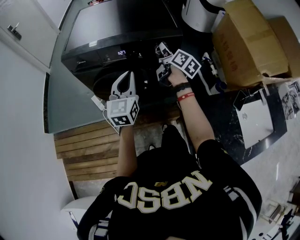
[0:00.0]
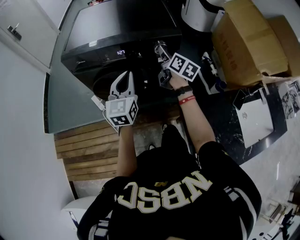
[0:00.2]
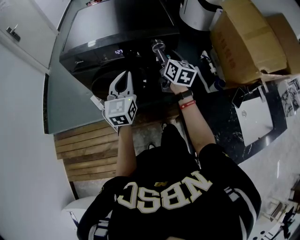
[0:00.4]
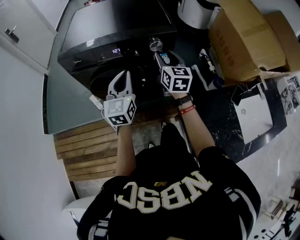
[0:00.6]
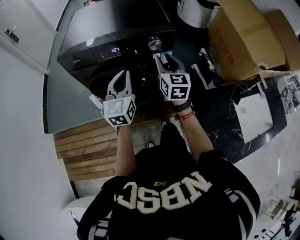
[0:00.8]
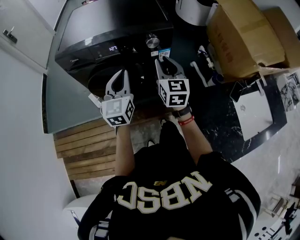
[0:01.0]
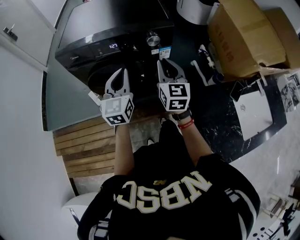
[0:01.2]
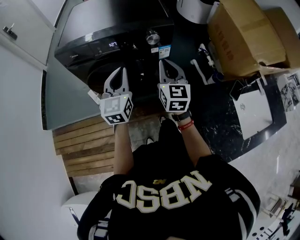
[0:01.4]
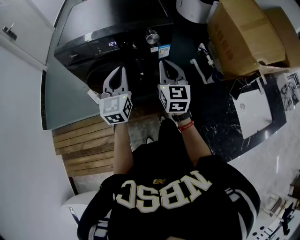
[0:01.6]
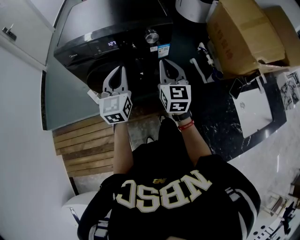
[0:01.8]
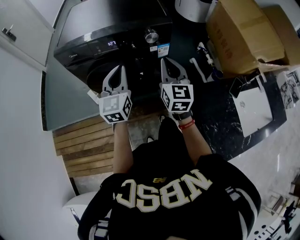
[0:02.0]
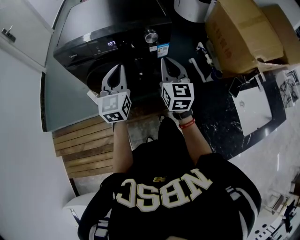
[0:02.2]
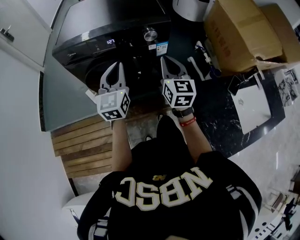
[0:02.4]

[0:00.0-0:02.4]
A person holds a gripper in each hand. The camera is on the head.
0:00.0 to 0:01.2: The right gripper heads backward, covering about 15 cm, rolls counterclockwise, seen from behind, by some 50 degrees, and closes.
0:01.2 to 0:02.4: The grippers stay close to where they were, moving slightly.

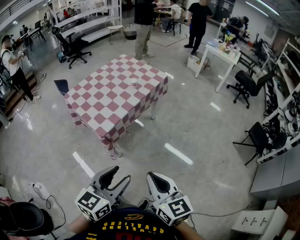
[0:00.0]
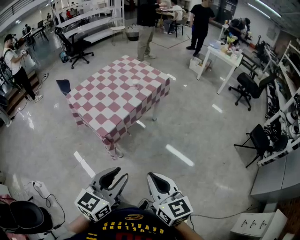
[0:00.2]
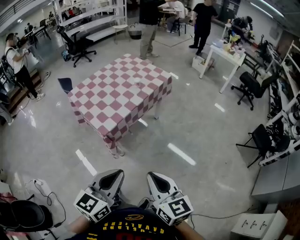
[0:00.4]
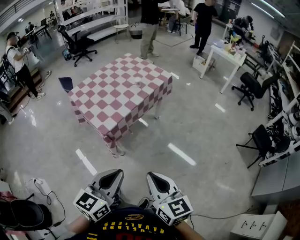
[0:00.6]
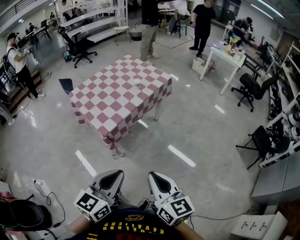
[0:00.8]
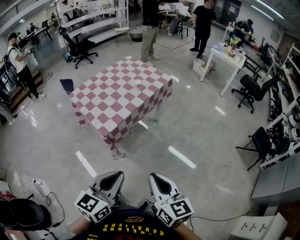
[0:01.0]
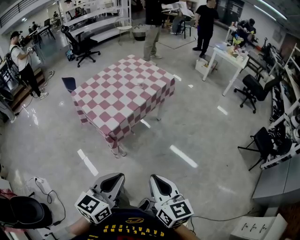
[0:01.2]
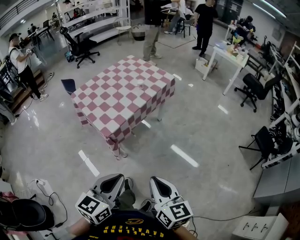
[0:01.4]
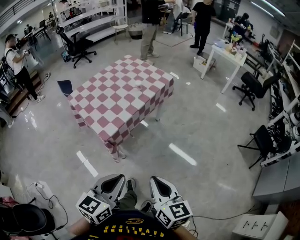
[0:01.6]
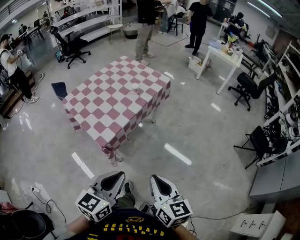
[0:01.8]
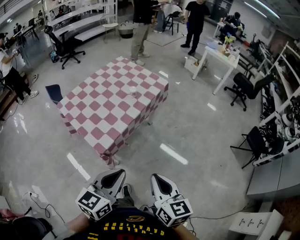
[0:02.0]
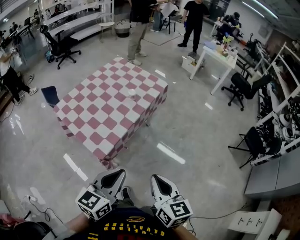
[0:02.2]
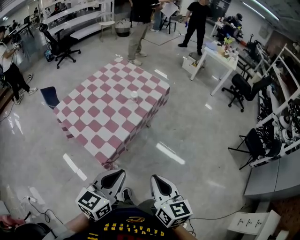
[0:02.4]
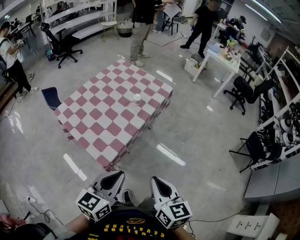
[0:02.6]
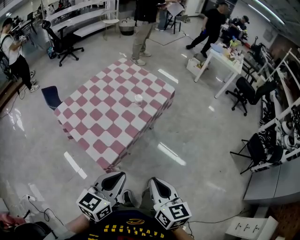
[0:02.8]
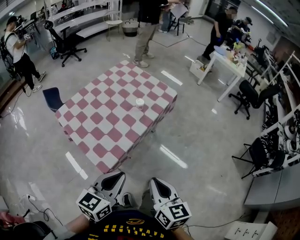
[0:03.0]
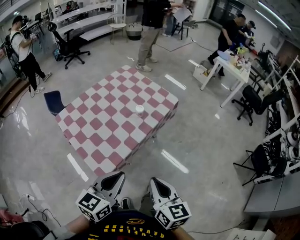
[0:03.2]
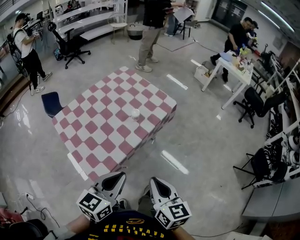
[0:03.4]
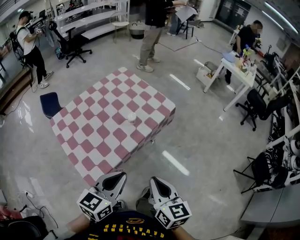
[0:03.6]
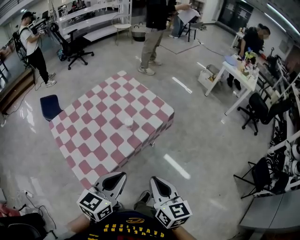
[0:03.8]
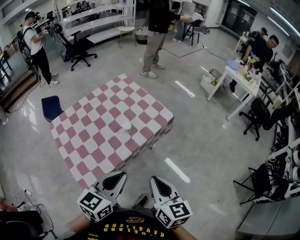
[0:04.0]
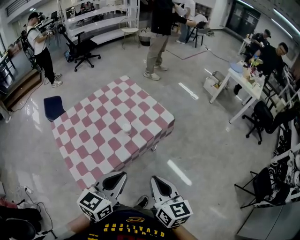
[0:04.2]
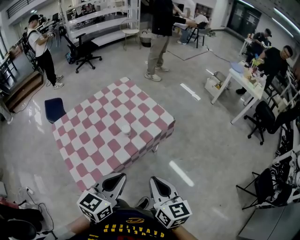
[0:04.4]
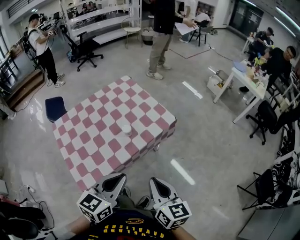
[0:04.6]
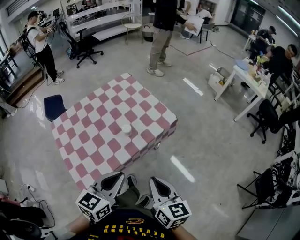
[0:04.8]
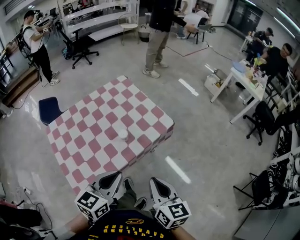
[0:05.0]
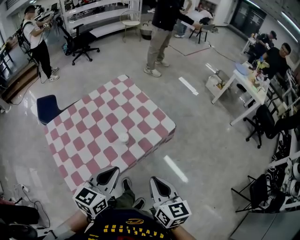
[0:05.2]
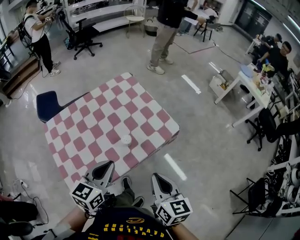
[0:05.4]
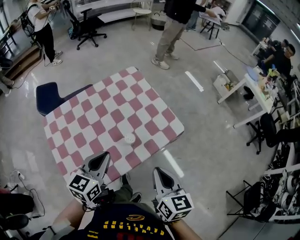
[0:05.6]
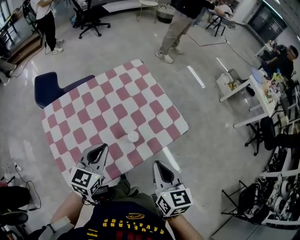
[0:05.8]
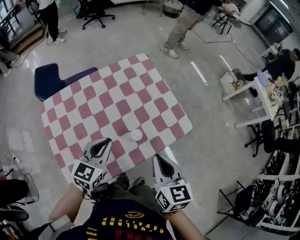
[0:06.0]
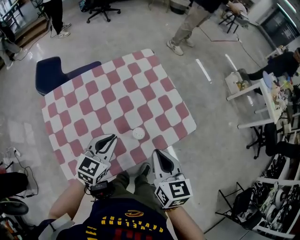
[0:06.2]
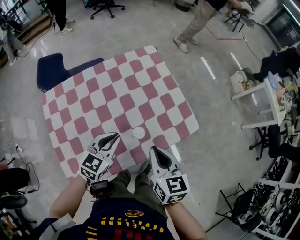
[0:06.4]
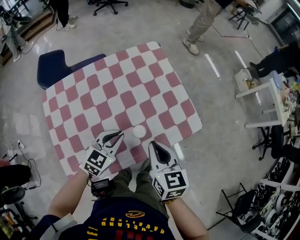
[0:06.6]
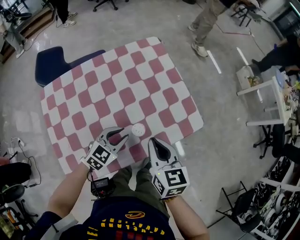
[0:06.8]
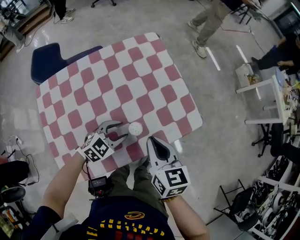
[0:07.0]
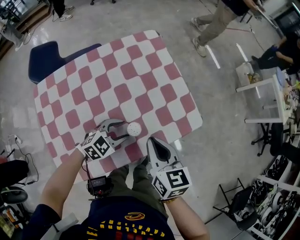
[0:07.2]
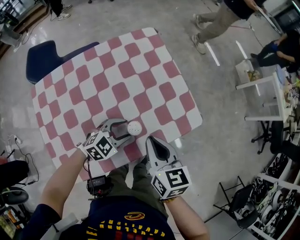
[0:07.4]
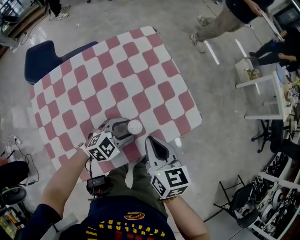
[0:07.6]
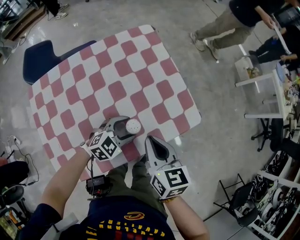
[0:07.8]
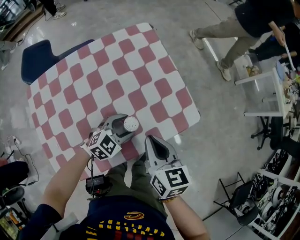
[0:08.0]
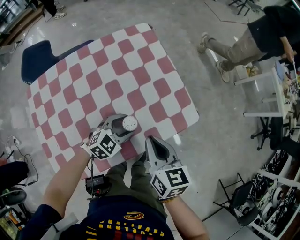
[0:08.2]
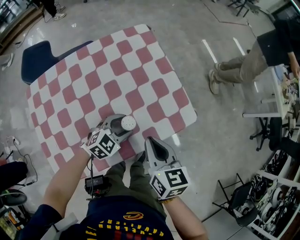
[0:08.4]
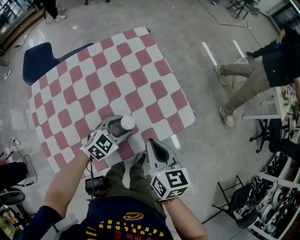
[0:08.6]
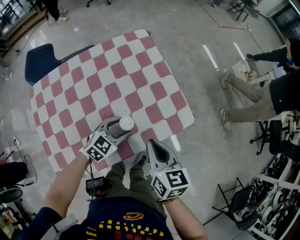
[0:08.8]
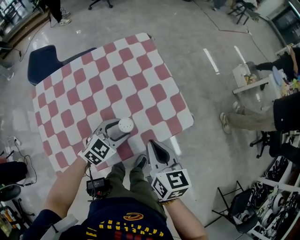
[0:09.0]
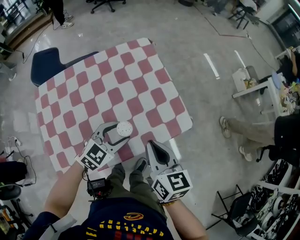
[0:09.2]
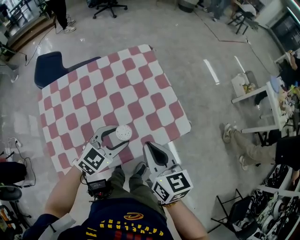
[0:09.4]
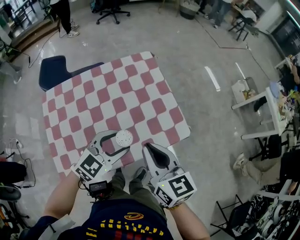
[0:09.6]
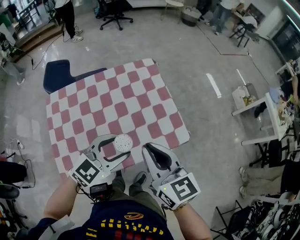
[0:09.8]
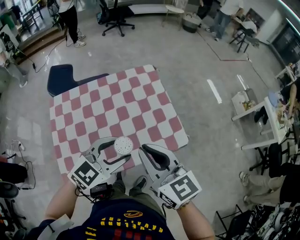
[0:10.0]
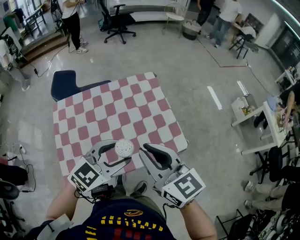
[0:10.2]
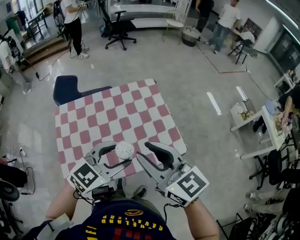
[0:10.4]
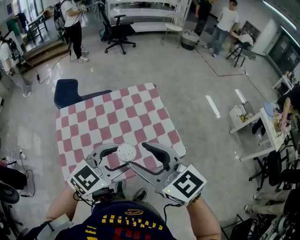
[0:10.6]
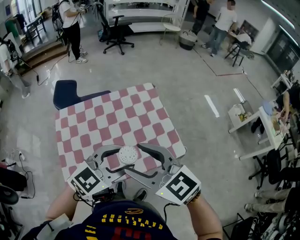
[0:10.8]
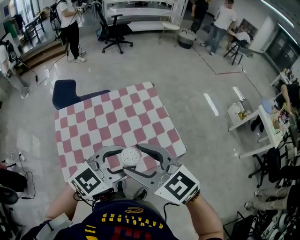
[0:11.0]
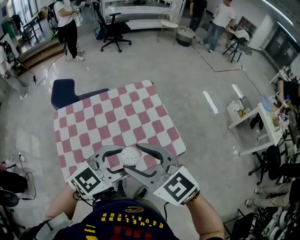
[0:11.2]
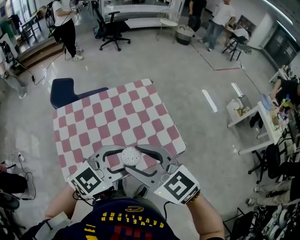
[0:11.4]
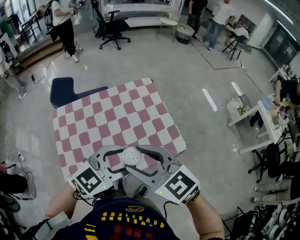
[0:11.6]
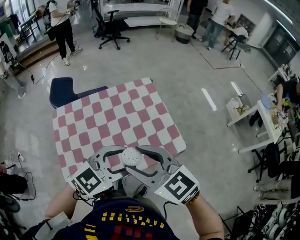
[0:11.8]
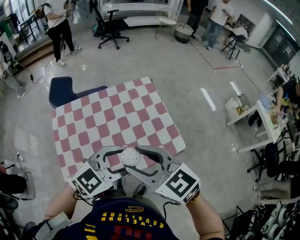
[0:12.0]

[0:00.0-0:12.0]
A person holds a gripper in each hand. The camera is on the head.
0:00.0 to 0:01.6: The left gripper closes.
0:01.6 to 0:03.0: Both grippers travel together forward and to the left, roughly 25 cm.
0:03.0 to 0:04.4: The two grippers go approximately 20 cm forward and to the right.
0:04.4 to 0:06.0: The left gripper shifts about 30 cm forward, to the left and downward. Meanwhile the right gripper is displaced forward by about 25 cm.
0:06.0 to 0:07.6: The left gripper heads downward and to the right, covering roughly 20 cm, rotates about 40 degrees, and opens up, while the right gripper shifts roughly 10 cm downward and forward.
0:07.6 to 0:09.0: The grippers make only small movements.
0:09.0 to 0:10.4: The grippers both shift upward by approximately 25 cm. The right gripper changes its angle by roughly 40 degrees, and opens its fingers.
0:10.4 to 0:12.0: The right gripper moves some 5 cm, and opens its fingers.

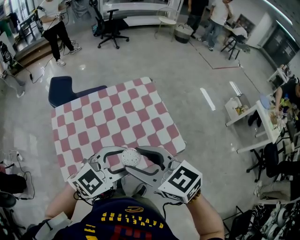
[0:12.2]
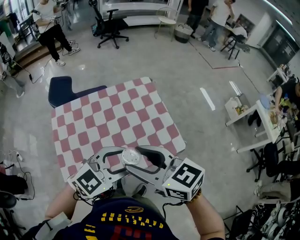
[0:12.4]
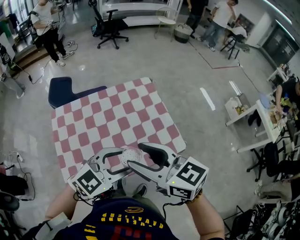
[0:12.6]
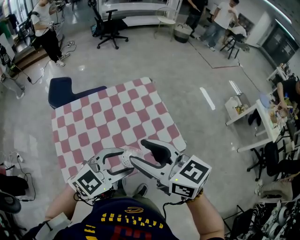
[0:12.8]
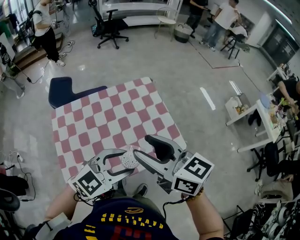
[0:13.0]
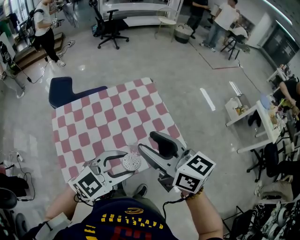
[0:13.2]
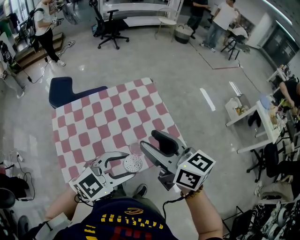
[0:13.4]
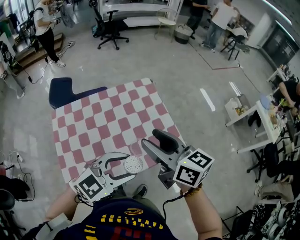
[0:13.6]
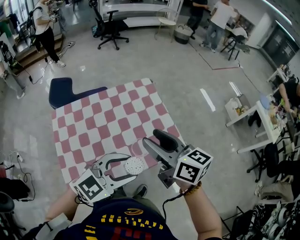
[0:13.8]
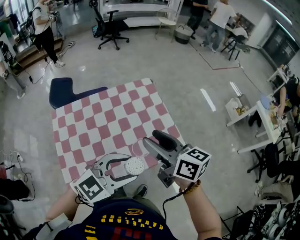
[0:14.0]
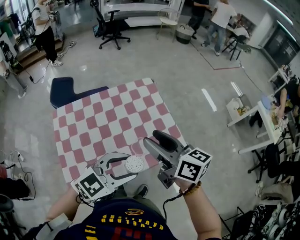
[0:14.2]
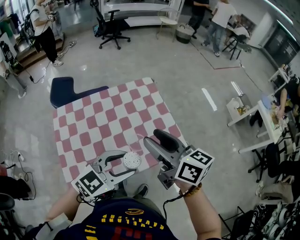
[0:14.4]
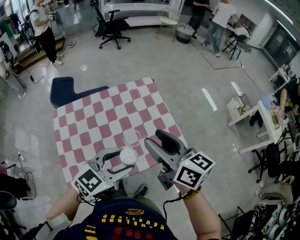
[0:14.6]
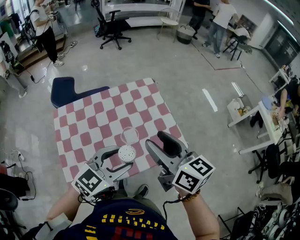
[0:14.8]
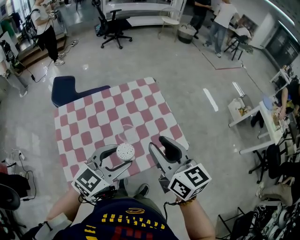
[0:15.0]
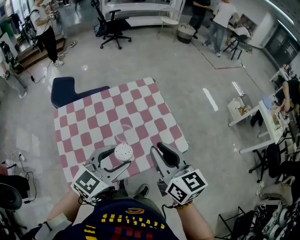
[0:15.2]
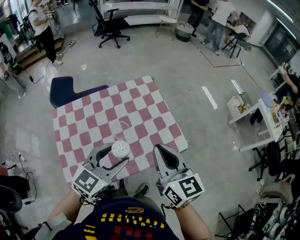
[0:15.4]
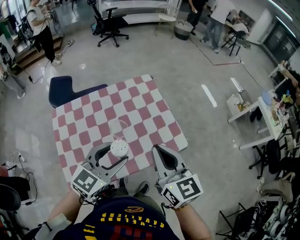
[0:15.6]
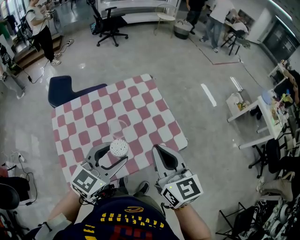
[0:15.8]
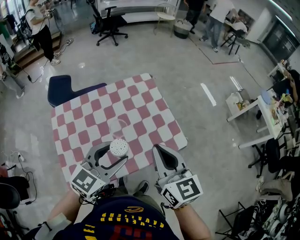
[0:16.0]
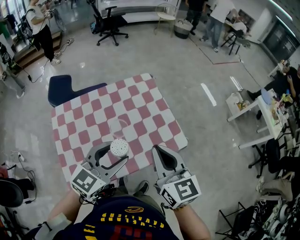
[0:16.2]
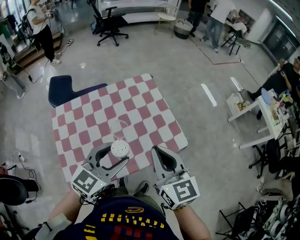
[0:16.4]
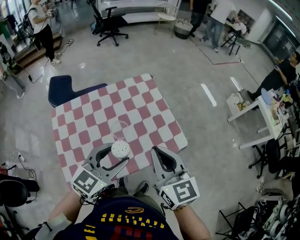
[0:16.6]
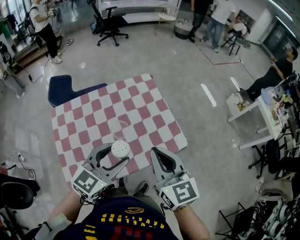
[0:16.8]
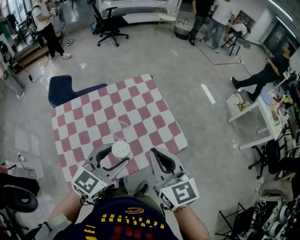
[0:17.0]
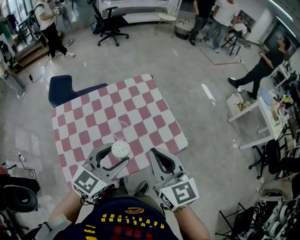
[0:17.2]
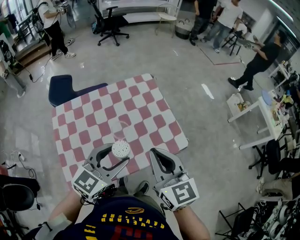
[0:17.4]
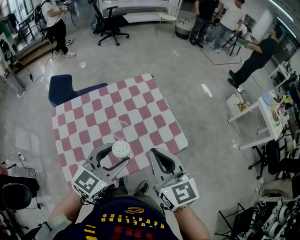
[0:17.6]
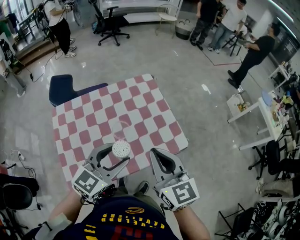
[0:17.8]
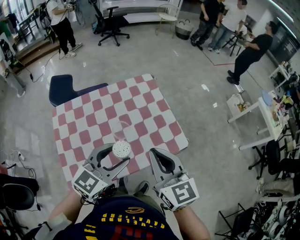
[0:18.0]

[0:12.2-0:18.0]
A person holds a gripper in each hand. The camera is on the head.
0:12.2 to 0:13.6: The right gripper heads forward, covering about 10 cm, and rotates some 30 degrees.
0:13.6 to 0:15.0: The left gripper shifts by roughly 5 cm.
0:15.0 to 0:16.6: The right gripper closes its fingers.
0:16.6 to 0:18.0: Both grippers stay put.

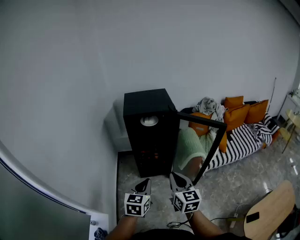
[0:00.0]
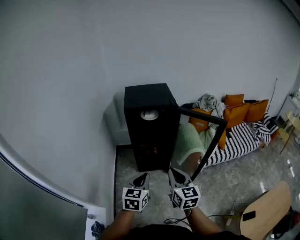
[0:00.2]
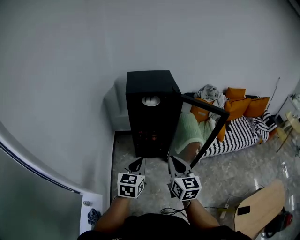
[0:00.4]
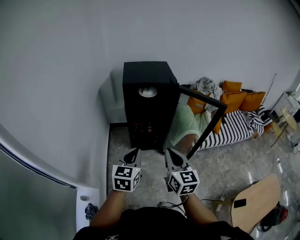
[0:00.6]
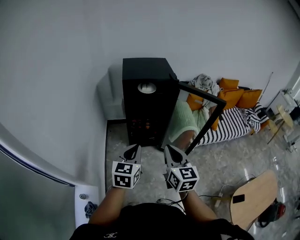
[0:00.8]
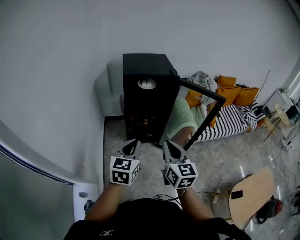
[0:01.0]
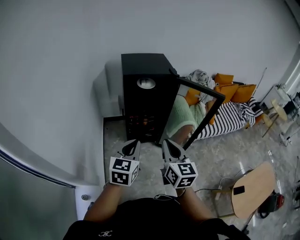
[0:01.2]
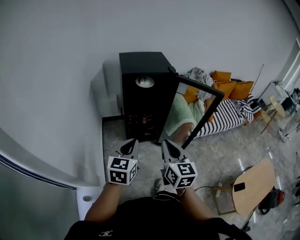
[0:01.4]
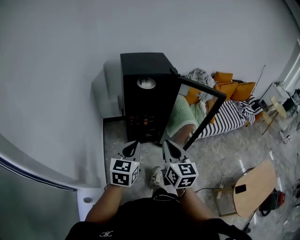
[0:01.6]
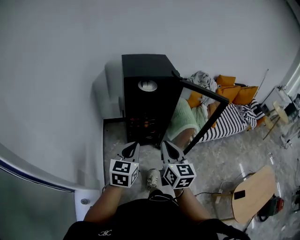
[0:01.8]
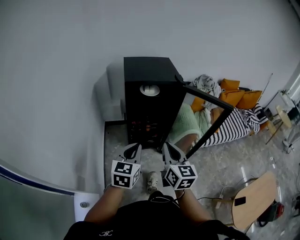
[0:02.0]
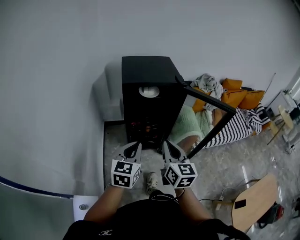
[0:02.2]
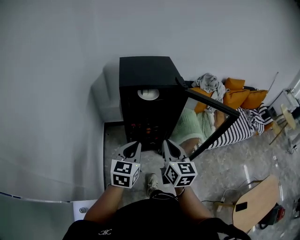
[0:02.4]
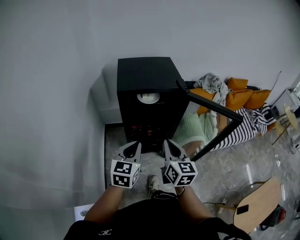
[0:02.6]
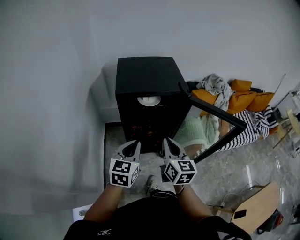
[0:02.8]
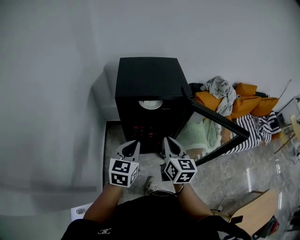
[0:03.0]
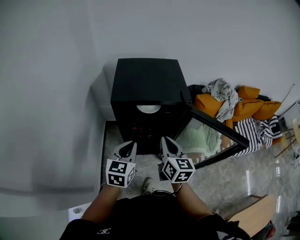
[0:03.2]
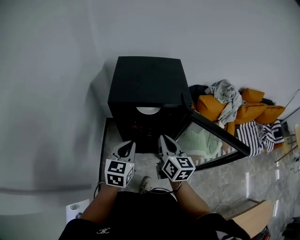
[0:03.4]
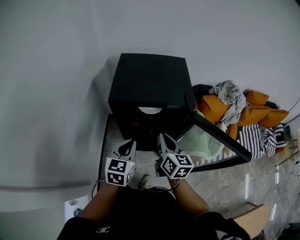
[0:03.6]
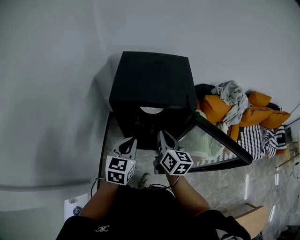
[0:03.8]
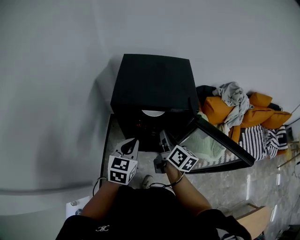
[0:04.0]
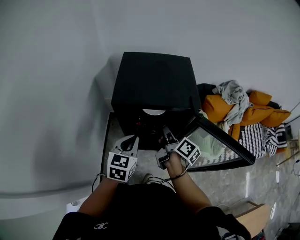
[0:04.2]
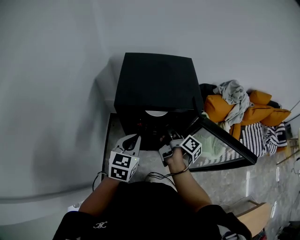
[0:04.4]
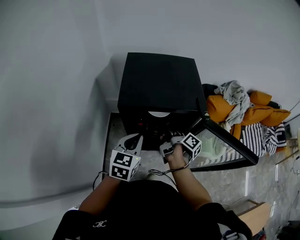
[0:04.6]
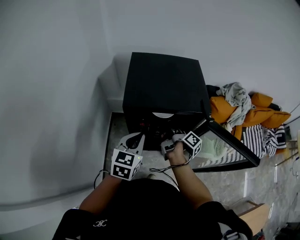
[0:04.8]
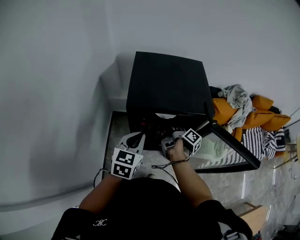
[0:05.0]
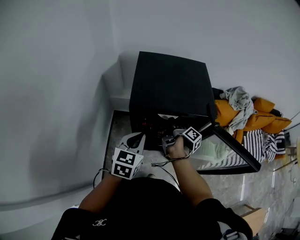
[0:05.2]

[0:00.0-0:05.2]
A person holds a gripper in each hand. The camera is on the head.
0:00.0 to 0:01.8: The grippers both shift to the left by approximately 10 cm.
0:01.8 to 0:03.4: Both grippers travel together forward, about 30 cm.
0:03.4 to 0:05.2: The right gripper travels forward and downward by about 20 cm, twists some 70 degrees clockwise, seen from behind, and opens its fingers, while the left gripper moves forward and to the left, some 10 cm.
